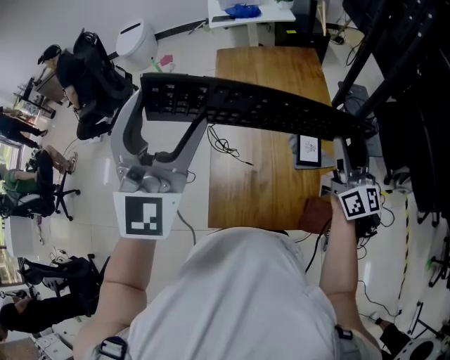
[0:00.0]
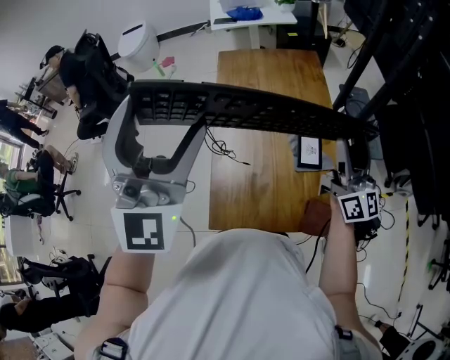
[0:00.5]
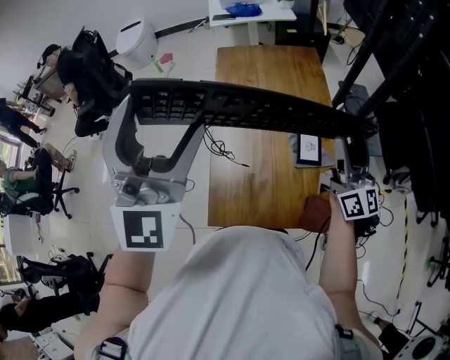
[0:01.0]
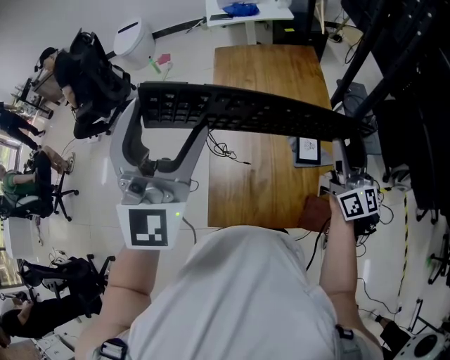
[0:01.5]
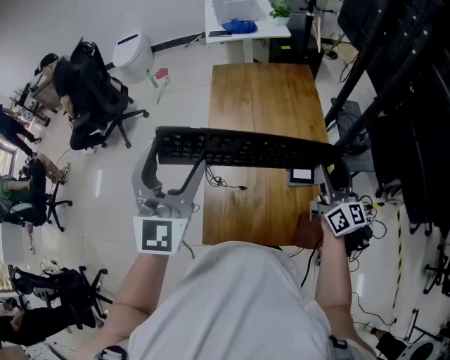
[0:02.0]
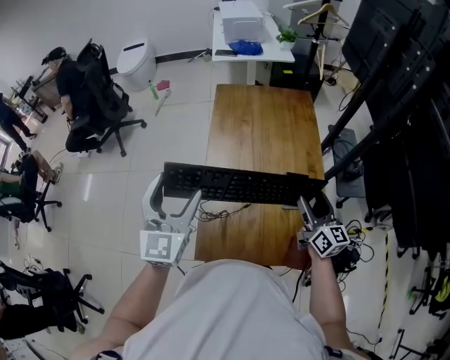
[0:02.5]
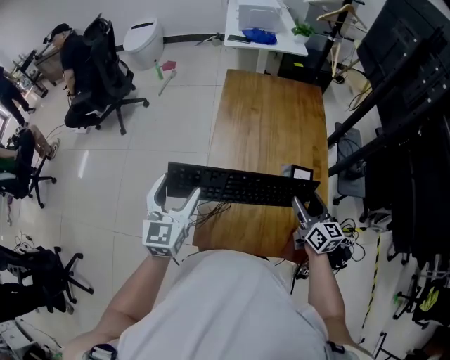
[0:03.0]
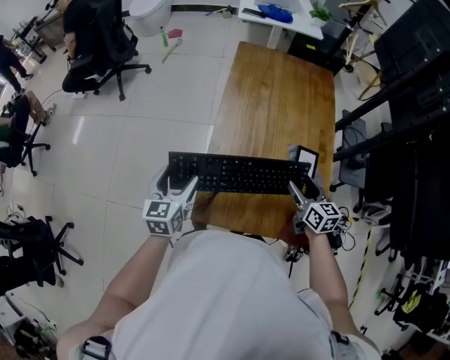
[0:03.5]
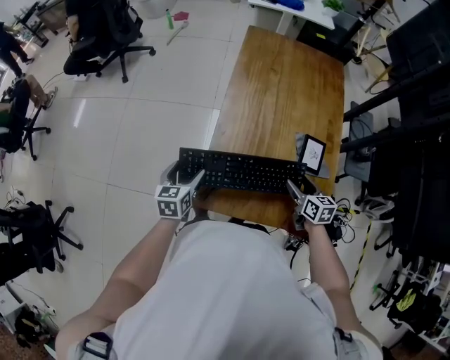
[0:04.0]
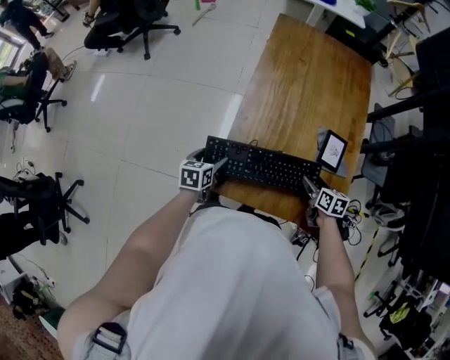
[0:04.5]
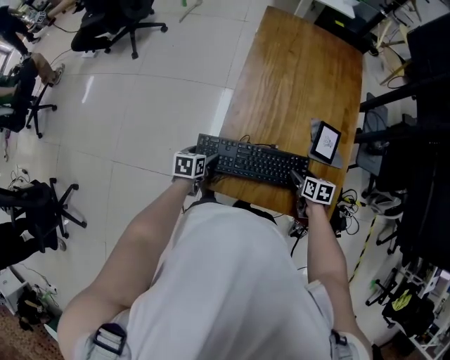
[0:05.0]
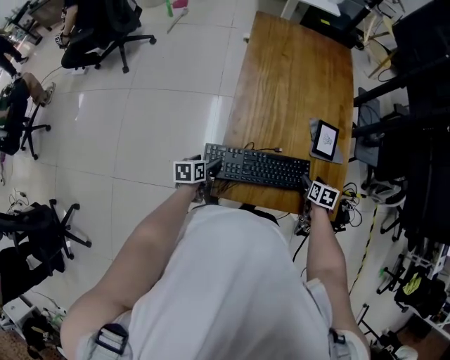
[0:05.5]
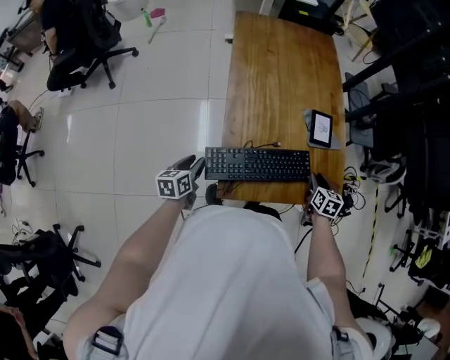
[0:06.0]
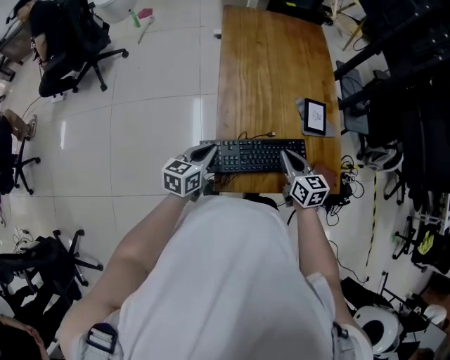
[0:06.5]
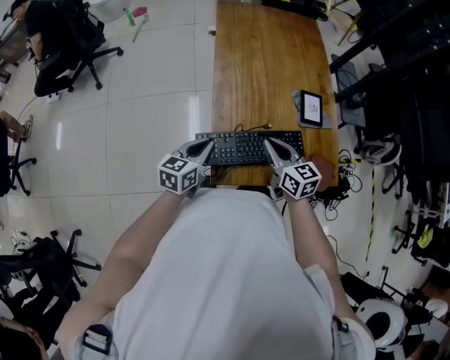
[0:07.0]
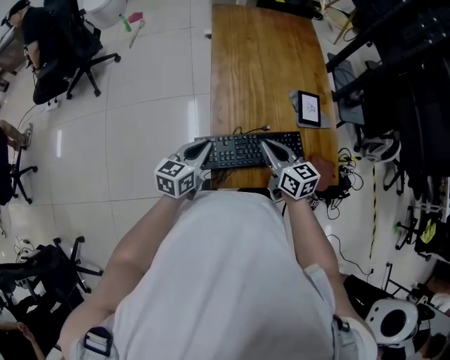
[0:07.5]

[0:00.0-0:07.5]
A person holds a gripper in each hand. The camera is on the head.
0:00.0 to 0:02.0: Both grippers travel together downward, roughly 5 cm.
0:02.0 to 0:04.0: The right gripper travels downward by roughly 25 cm, and points its fingers approximately 50 degrees further downward. Meanwhile the left gripper goes about 35 cm downward, and points its fingers approximately 40 degrees further downward.
0:04.0 to 0:05.5: The right gripper goes some 10 cm downward, and rotates roughly 30 degrees; the left gripper is displaced downward by some 15 cm, and rotates roughly 30 degrees.
0:05.5 to 0:07.5: The right gripper shifts some 25 cm to the left and upward, tips its fingers upward by some 40 degrees, and closes up; the left gripper heads upward, covering approximately 15 cm, swivels roughly 40 degrees, and closes its fingers.

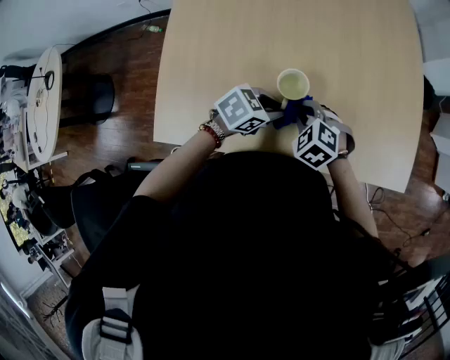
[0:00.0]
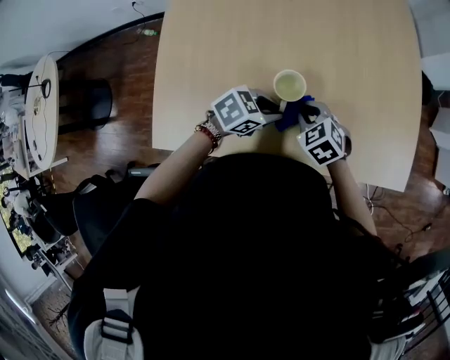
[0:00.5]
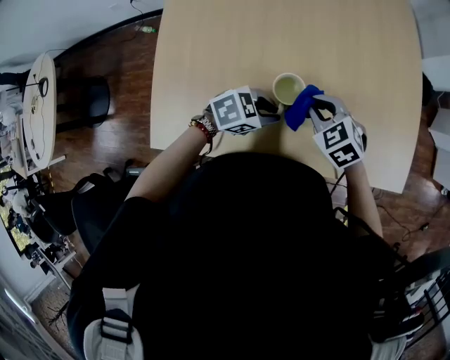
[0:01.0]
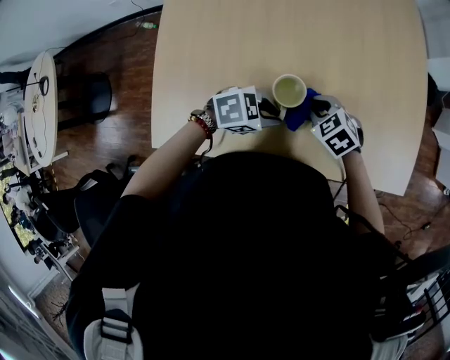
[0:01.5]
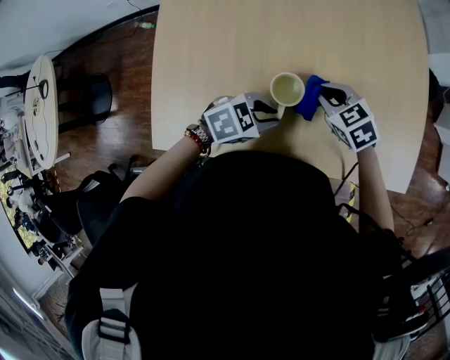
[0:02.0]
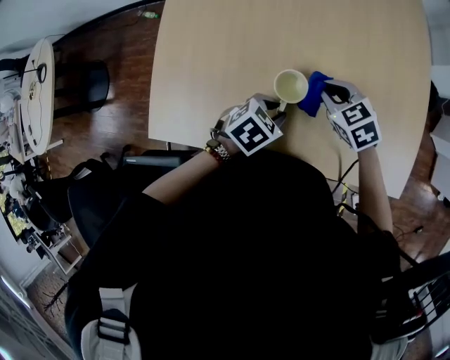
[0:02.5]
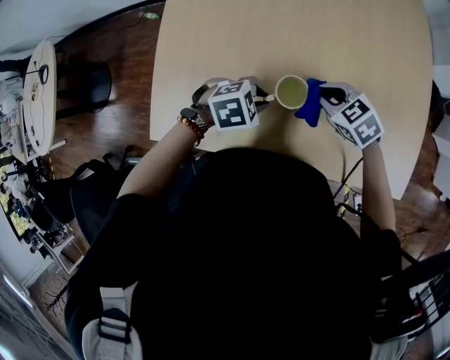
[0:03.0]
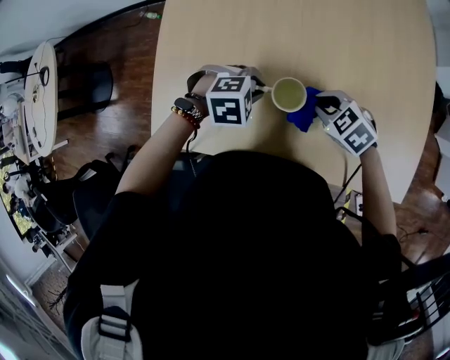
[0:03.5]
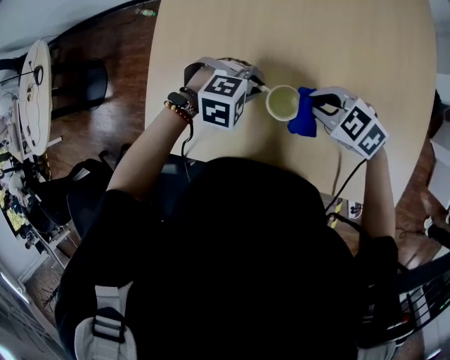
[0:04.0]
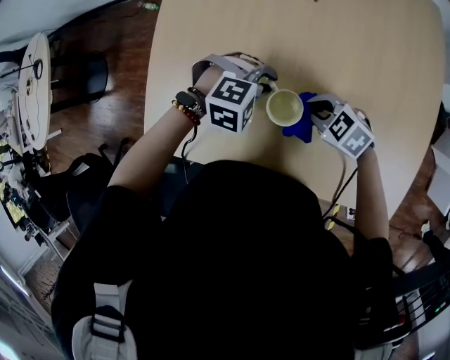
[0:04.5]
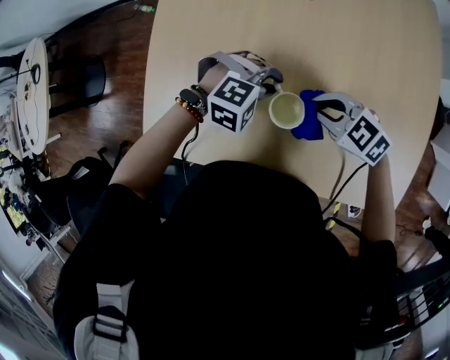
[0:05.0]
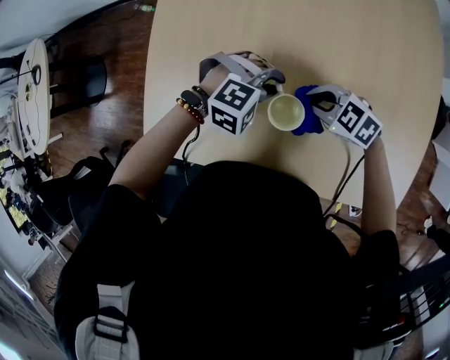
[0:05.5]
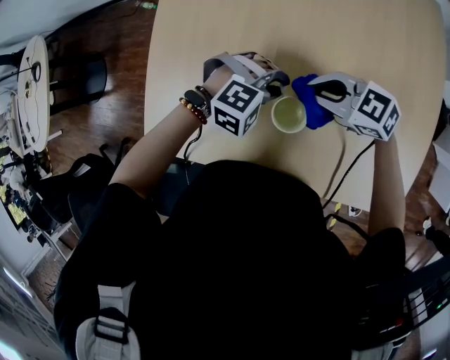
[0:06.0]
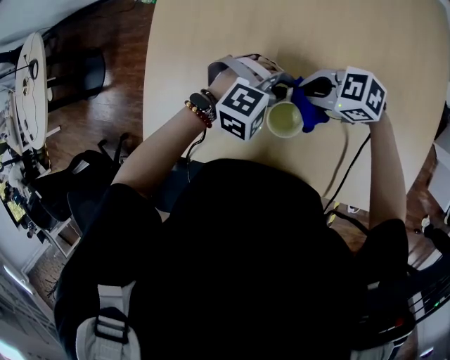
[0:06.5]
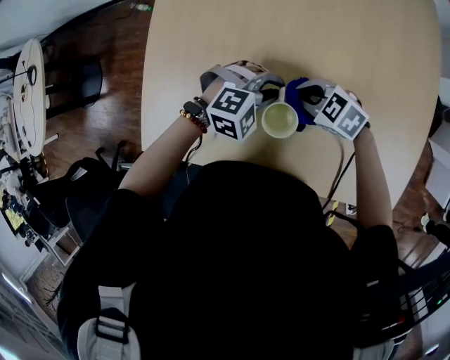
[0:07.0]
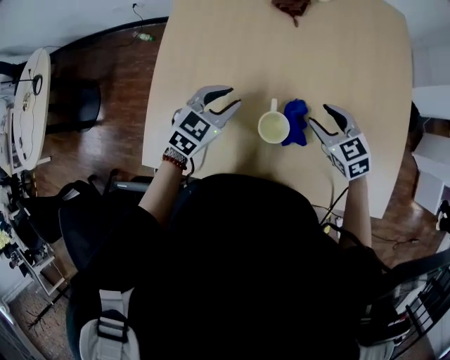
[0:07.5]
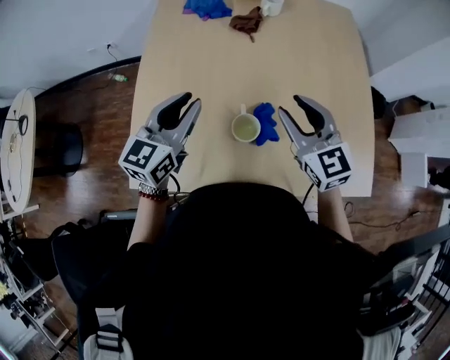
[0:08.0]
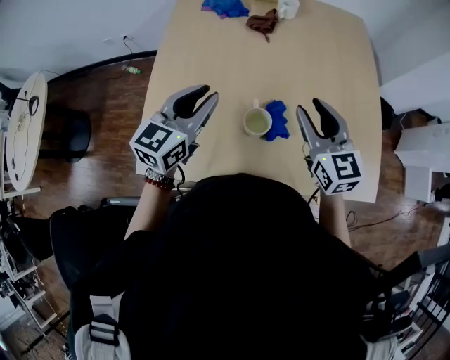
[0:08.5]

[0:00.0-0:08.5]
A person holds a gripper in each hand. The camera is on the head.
0:00.0 to 0:02.0: The right gripper ends up about 10 cm from where it was, and changes its angle by approximately 30 degrees.
0:02.0 to 0:04.0: The left gripper shifts by some 10 cm, and swivels approximately 40 degrees. Meanwhile the right gripper rotates roughly 30 degrees.
0:04.0 to 0:06.5: The right gripper moves up and down over roughly 10 cm, changing direction 4 times, and swivels some 20 degrees; the left gripper shifts by roughly 5 cm.
0:06.5 to 0:08.5: The grippers both shift upward by about 20 cm. The left gripper points its fingers approximately 40 degrees further upward; the right gripper swivels approximately 80 degrees, and opens its fingers.

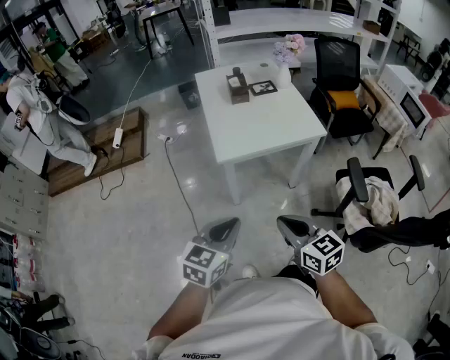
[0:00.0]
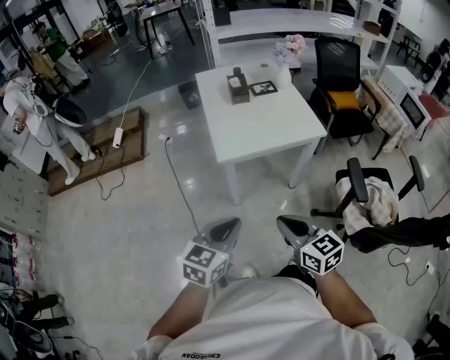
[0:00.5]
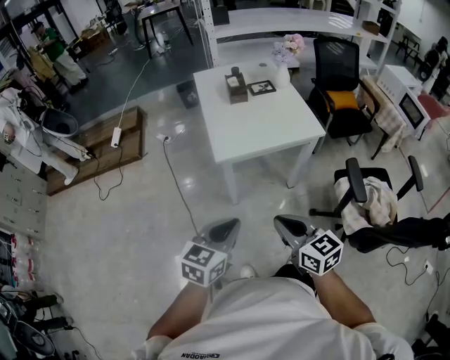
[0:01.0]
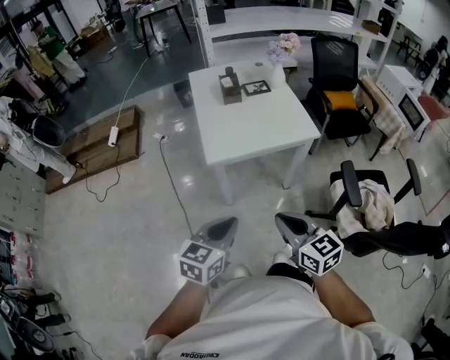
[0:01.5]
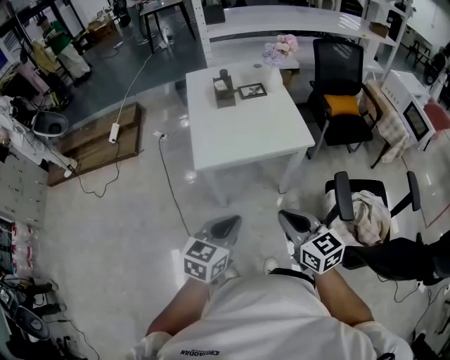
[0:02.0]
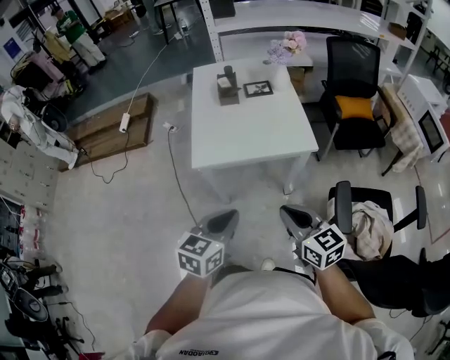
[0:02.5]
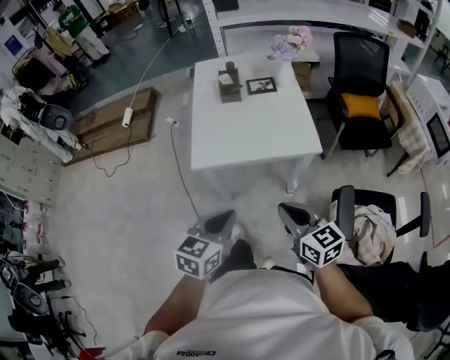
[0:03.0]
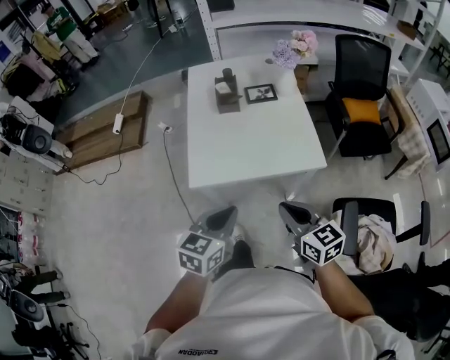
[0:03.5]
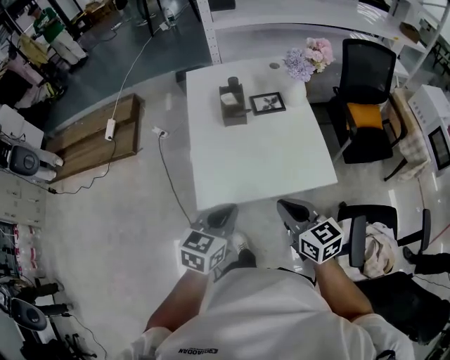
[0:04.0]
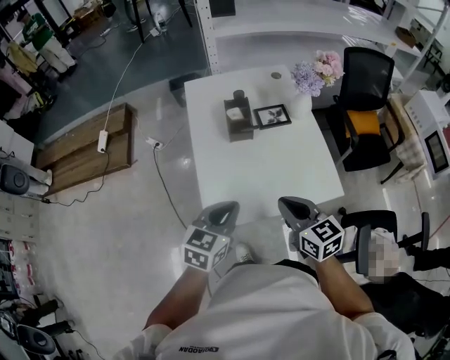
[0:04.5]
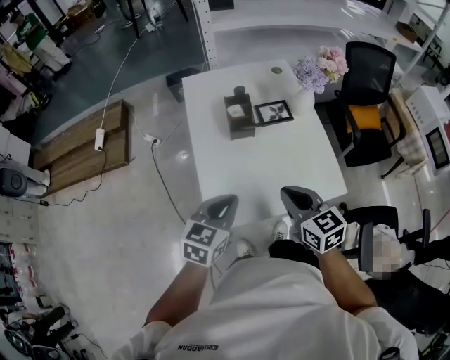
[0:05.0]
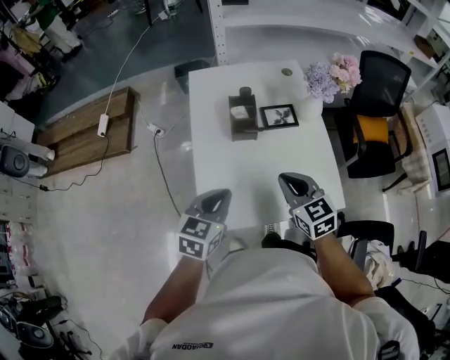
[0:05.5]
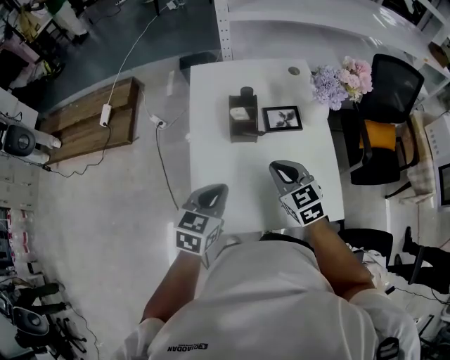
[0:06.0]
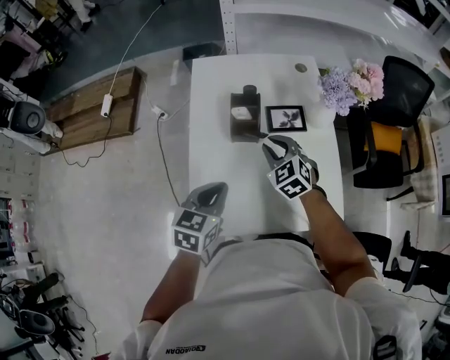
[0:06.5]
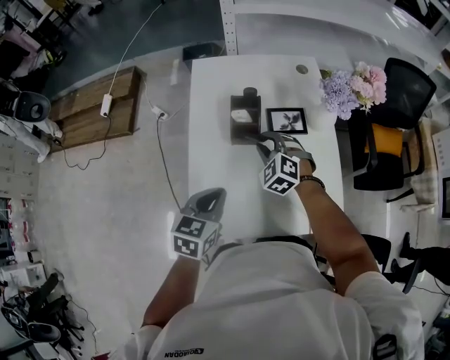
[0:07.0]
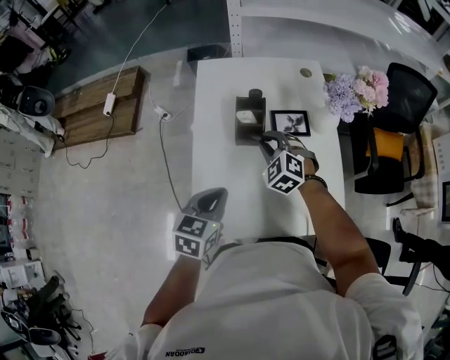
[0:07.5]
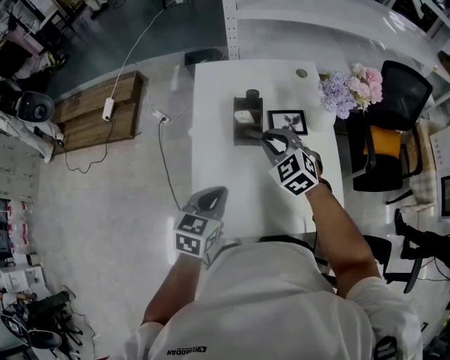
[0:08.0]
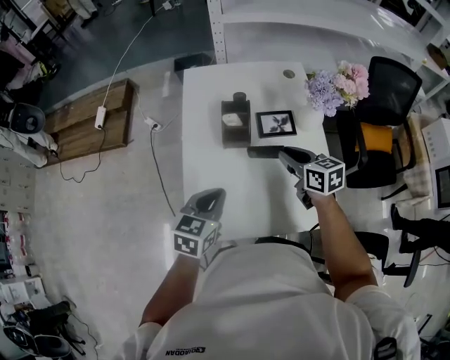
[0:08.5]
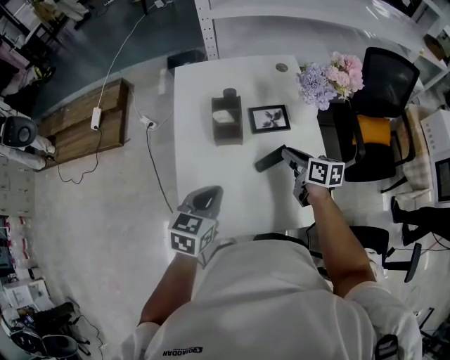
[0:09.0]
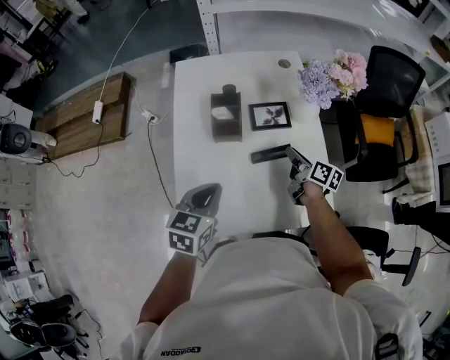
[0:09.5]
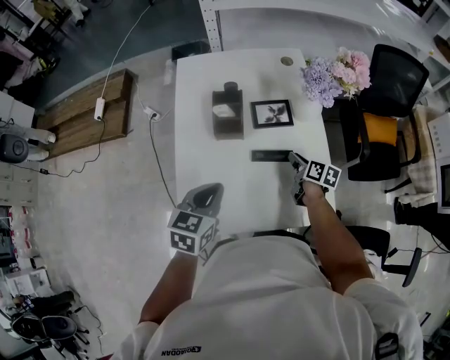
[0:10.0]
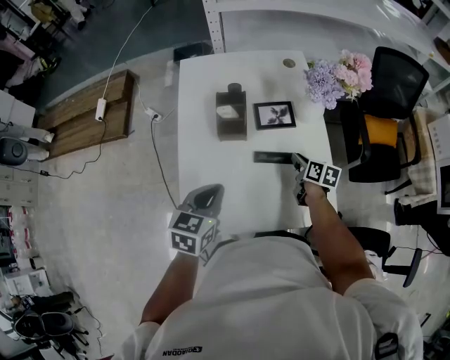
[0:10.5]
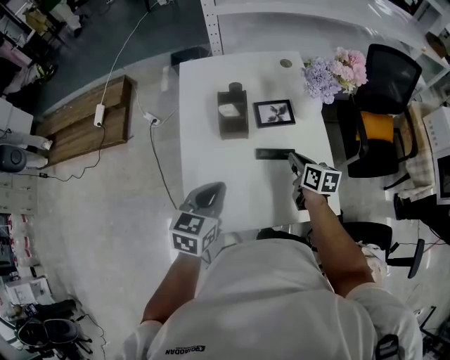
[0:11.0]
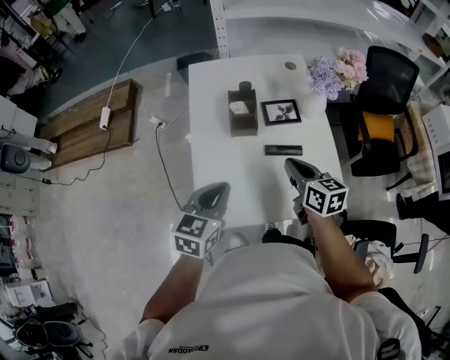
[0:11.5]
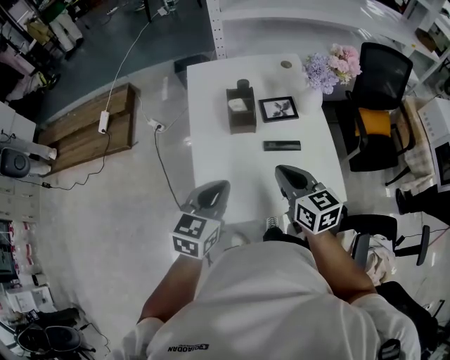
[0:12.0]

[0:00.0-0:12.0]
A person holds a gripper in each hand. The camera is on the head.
0:00.0 to 0:02.0: The two grippers go approximately 15 cm to the right and forward.
0:02.0 to 0:04.0: The two grippers go approximately 30 cm forward.
0:04.0 to 0:06.0: Both grippers travel together forward, about 25 cm. The right gripper swivels approximately 20 degrees.
0:06.0 to 0:08.0: The right gripper shifts approximately 10 cm forward, and changes its angle by about 20 degrees.
0:08.0 to 0:10.0: The right gripper heads to the right and downward, covering approximately 25 cm, and rolls clockwise, seen from behind, by roughly 80 degrees; the left gripper shifts roughly 5 cm to the right.
0:10.0 to 0:12.0: The right gripper moves upward, backward and to the left, roughly 30 cm, swivels about 40 degrees, and closes up. Meanwhile the left gripper travels backward and upward by approximately 10 cm.
